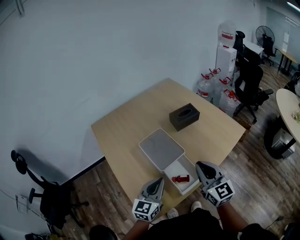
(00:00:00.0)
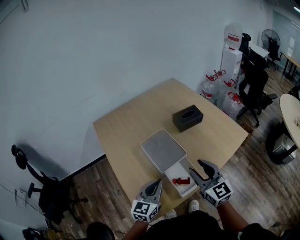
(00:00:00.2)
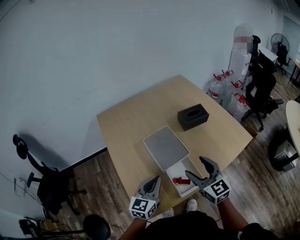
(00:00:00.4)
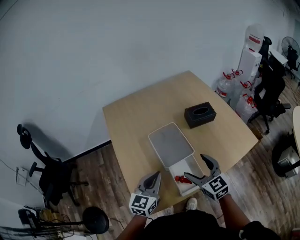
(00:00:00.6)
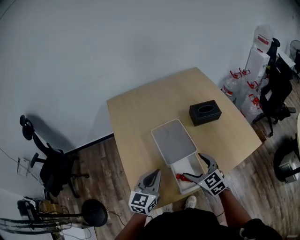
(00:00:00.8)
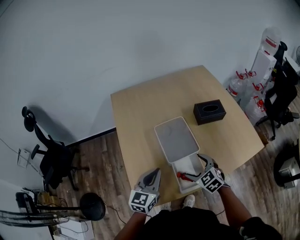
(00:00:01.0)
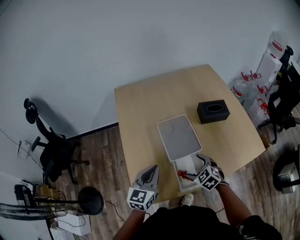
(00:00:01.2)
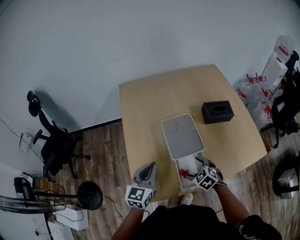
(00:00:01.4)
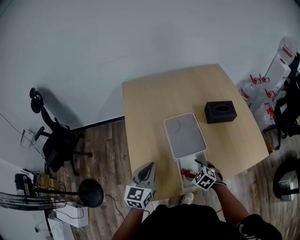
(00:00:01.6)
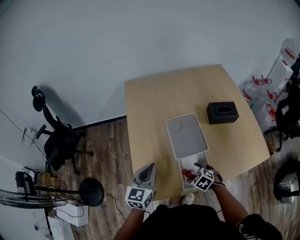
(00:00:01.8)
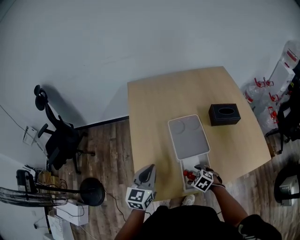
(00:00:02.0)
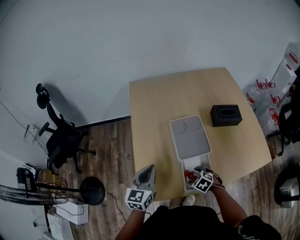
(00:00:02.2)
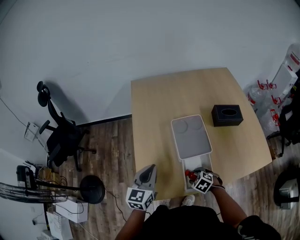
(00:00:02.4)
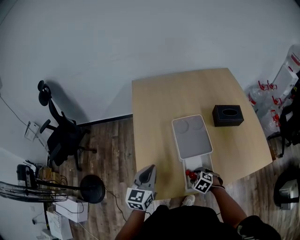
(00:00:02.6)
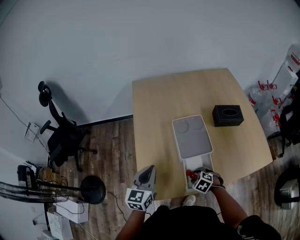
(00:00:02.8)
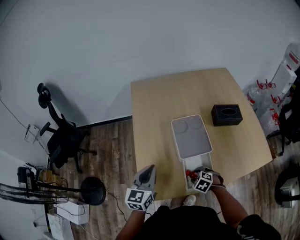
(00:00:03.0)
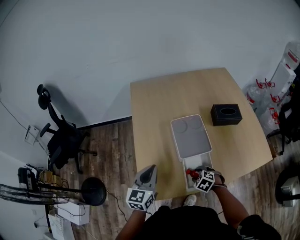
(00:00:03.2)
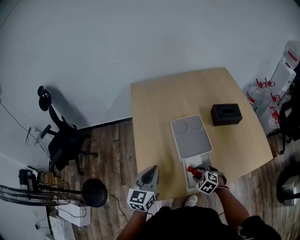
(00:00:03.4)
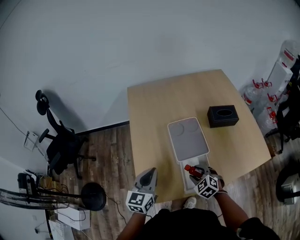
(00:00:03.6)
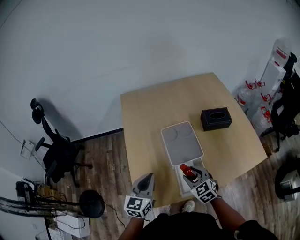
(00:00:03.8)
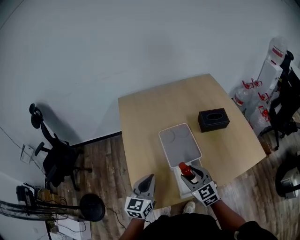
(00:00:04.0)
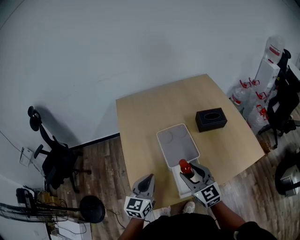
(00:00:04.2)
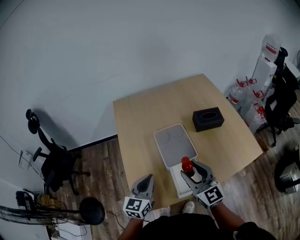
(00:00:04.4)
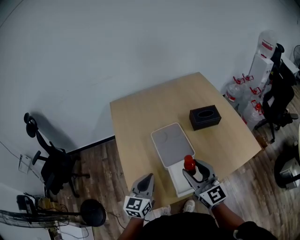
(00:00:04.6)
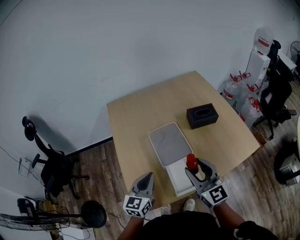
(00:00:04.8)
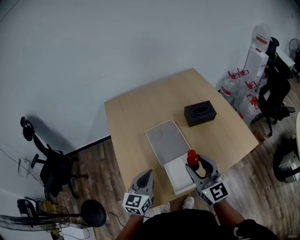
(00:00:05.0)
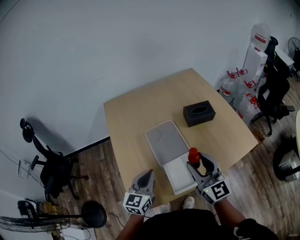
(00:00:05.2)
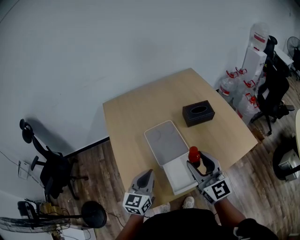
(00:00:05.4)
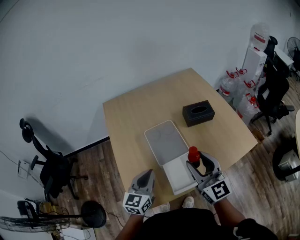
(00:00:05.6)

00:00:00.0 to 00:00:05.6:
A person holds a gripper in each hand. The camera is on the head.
00:00:00.0 to 00:00:01.4: The left gripper moves some 10 cm, and rotates some 30 degrees, while the right gripper heads downward, covering some 25 cm, tips its fingers downward by about 50 degrees, and opens its fingers.
00:00:01.4 to 00:00:02.8: The left gripper moves about 5 cm. The right gripper goes approximately 10 cm downward, rotates some 20 degrees, and closes up.
00:00:02.8 to 00:00:04.2: The left gripper moves about 5 cm; the right gripper moves upward, roughly 25 cm, and angles its fingers upward, by roughly 60 degrees.
00:00:04.2 to 00:00:05.6: The right gripper goes about 10 cm upward and to the right, and rotates about 20 degrees.

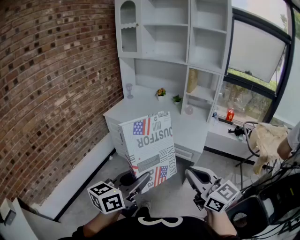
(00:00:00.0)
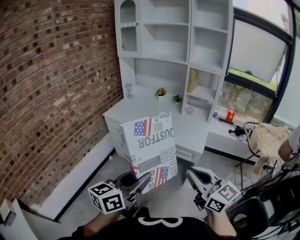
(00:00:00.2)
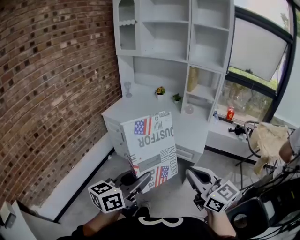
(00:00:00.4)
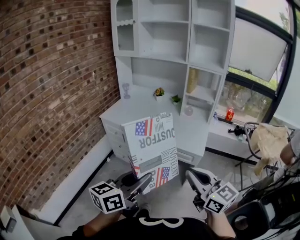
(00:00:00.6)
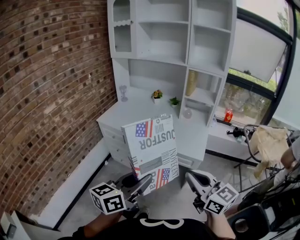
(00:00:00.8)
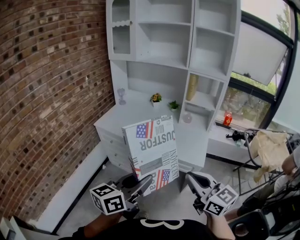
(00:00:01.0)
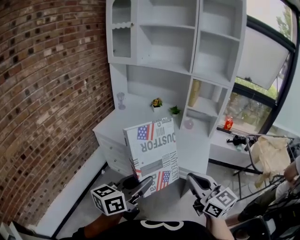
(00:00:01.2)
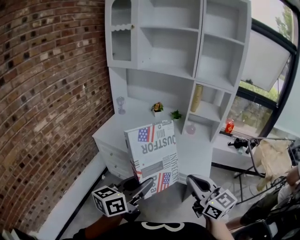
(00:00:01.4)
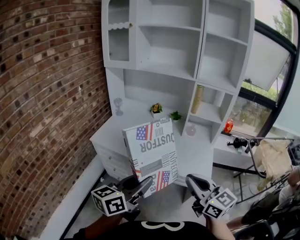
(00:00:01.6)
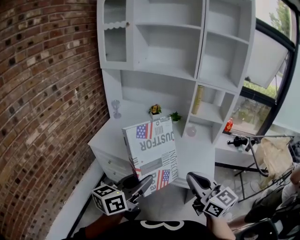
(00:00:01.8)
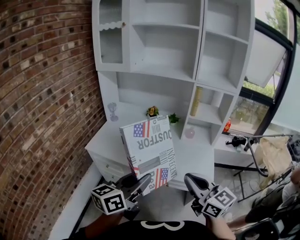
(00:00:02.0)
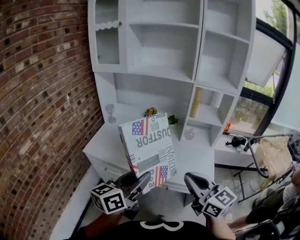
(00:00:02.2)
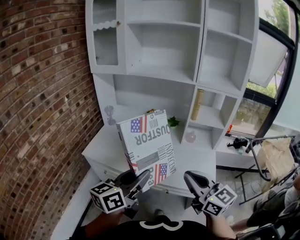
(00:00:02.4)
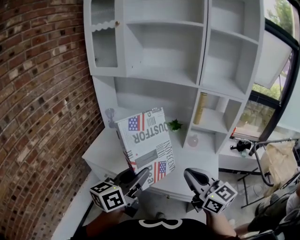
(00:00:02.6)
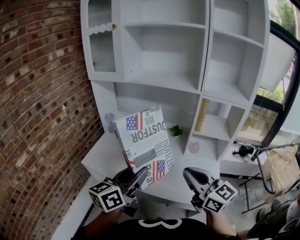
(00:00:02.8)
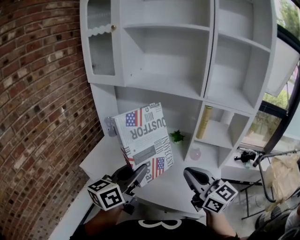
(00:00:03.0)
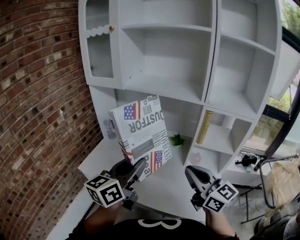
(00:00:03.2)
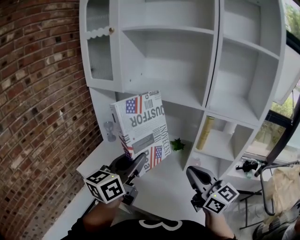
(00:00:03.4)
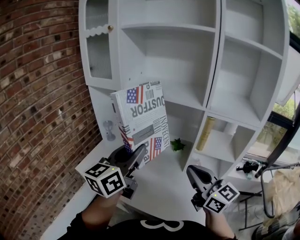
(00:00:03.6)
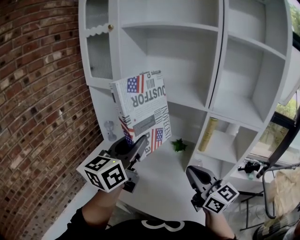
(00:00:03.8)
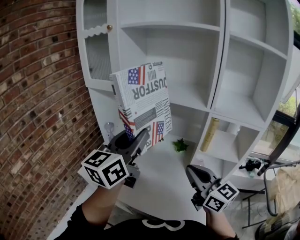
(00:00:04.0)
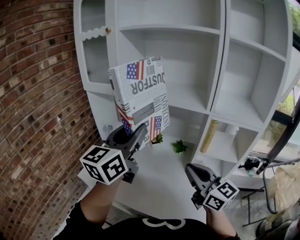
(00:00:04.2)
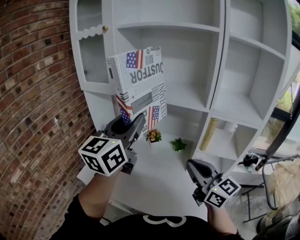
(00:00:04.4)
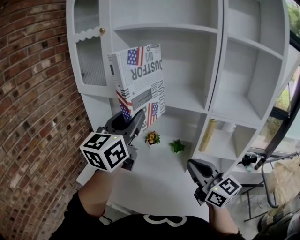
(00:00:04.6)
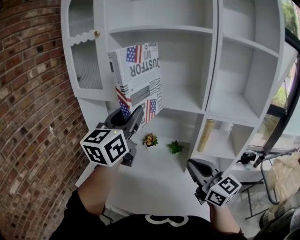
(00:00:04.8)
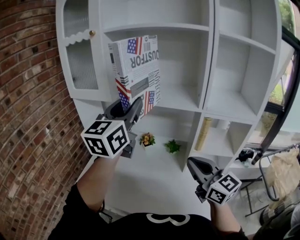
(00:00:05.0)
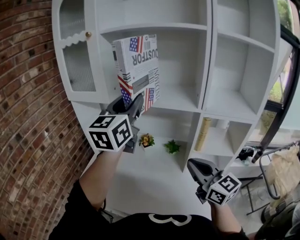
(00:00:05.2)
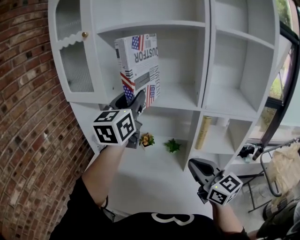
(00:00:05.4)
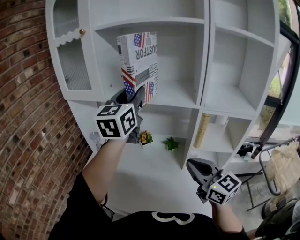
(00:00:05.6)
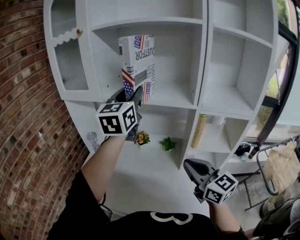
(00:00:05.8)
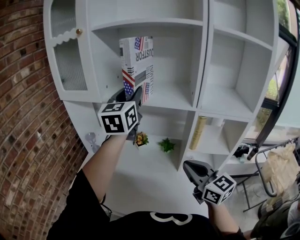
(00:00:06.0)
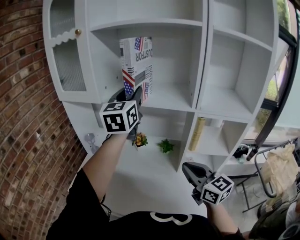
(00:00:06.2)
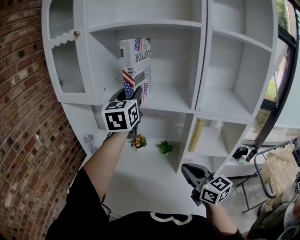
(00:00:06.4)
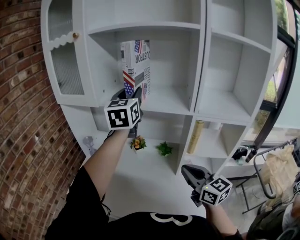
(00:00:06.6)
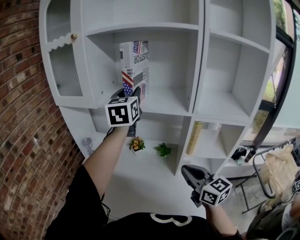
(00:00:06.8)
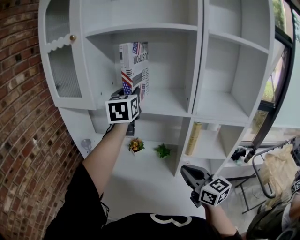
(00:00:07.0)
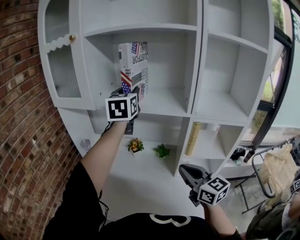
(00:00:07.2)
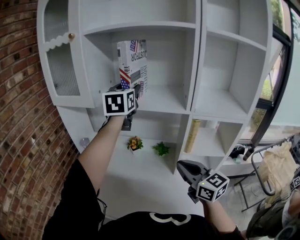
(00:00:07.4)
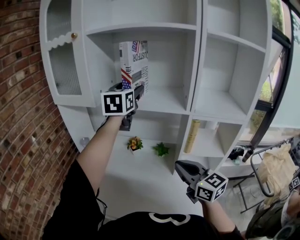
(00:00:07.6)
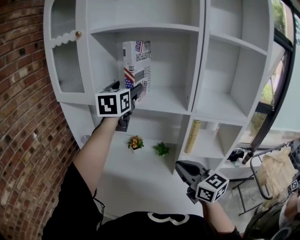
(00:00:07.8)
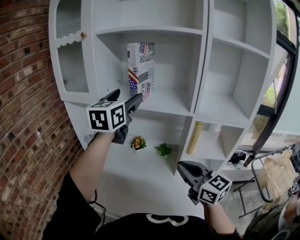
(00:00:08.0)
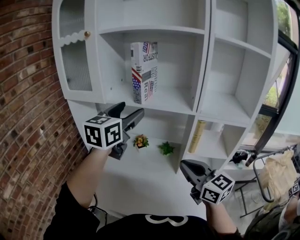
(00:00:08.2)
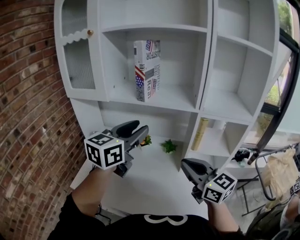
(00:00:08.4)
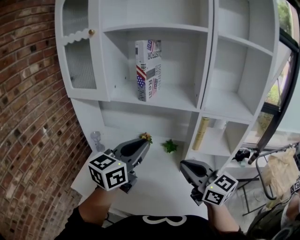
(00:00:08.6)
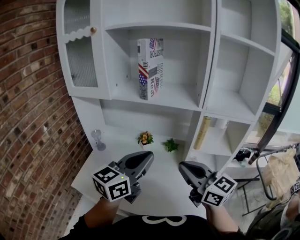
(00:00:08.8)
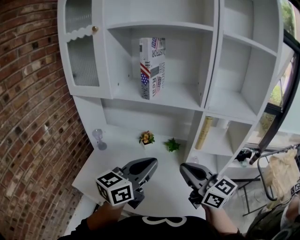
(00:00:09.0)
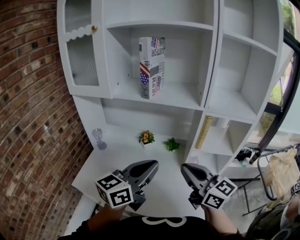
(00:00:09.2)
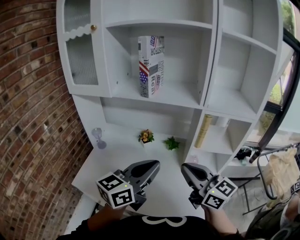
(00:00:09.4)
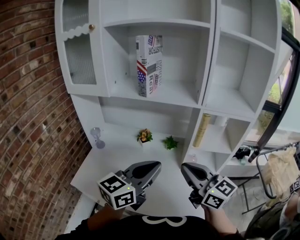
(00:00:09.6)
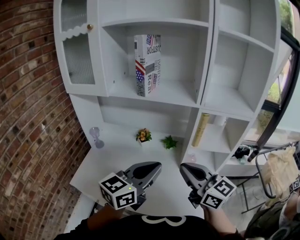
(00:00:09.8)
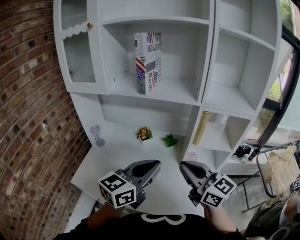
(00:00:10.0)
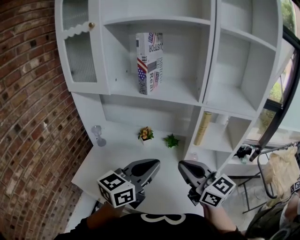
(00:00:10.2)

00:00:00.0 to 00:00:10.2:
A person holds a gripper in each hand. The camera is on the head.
00:00:00.0 to 00:00:01.4: Both grippers move forward, approximately 20 cm.
00:00:01.4 to 00:00:03.0: Both grippers travel together forward, approximately 30 cm.
00:00:03.0 to 00:00:04.4: The left gripper travels forward and upward by about 25 cm, and swivels approximately 20 degrees; the right gripper travels forward by some 10 cm.
00:00:04.4 to 00:00:05.8: The left gripper travels forward and to the right by about 15 cm.
00:00:05.8 to 00:00:07.2: The left gripper travels forward by some 10 cm.
00:00:07.2 to 00:00:08.8: The right gripper is displaced to the left, backward and upward by approximately 10 cm; the left gripper moves backward and downward, some 30 cm, swivels about 40 degrees, and closes up.
00:00:08.8 to 00:00:10.2: The left gripper changes place by roughly 5 cm.

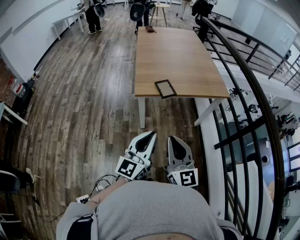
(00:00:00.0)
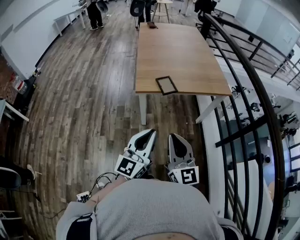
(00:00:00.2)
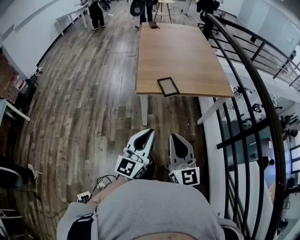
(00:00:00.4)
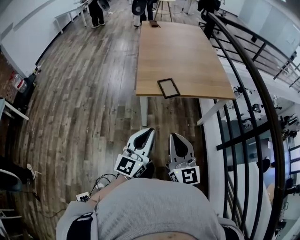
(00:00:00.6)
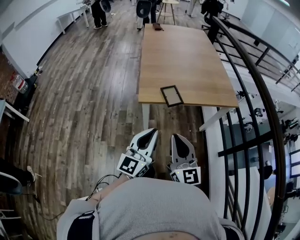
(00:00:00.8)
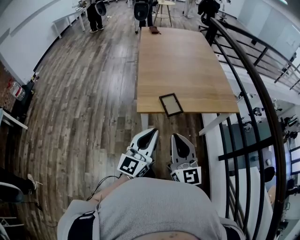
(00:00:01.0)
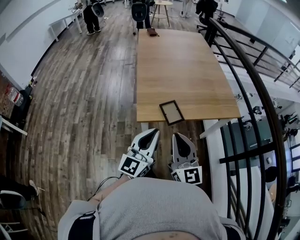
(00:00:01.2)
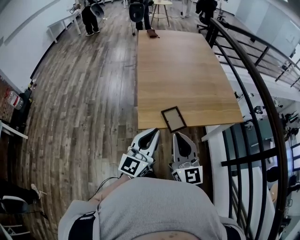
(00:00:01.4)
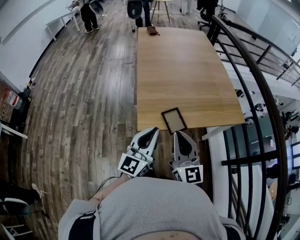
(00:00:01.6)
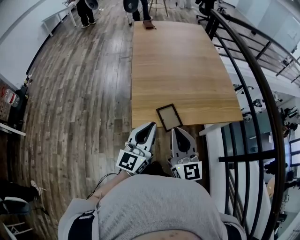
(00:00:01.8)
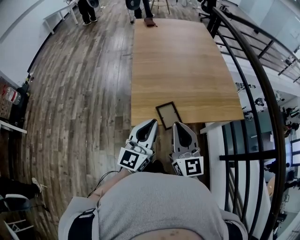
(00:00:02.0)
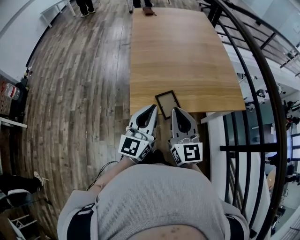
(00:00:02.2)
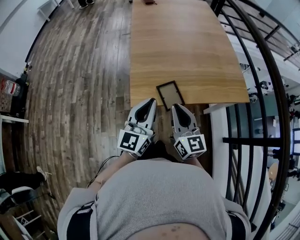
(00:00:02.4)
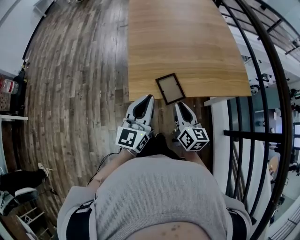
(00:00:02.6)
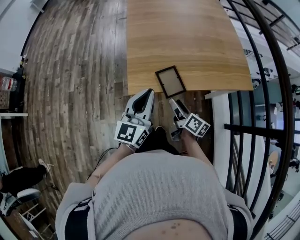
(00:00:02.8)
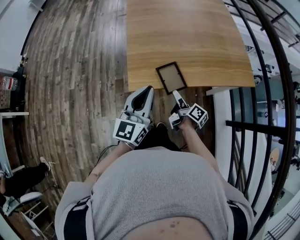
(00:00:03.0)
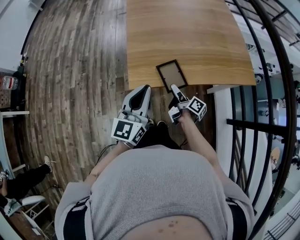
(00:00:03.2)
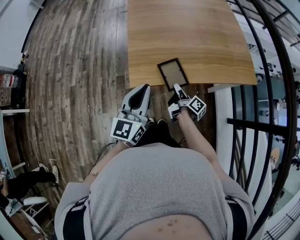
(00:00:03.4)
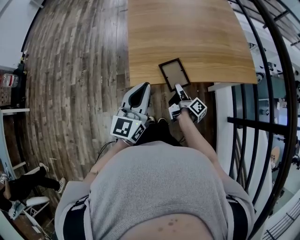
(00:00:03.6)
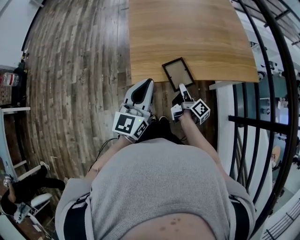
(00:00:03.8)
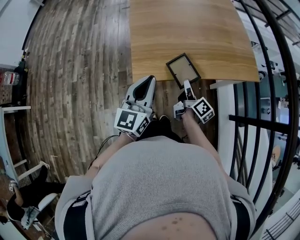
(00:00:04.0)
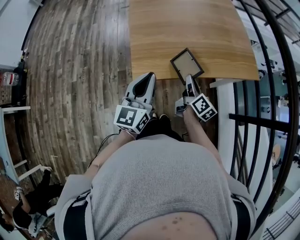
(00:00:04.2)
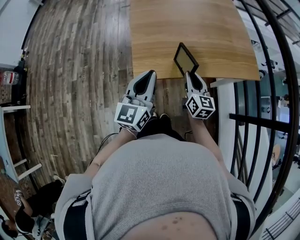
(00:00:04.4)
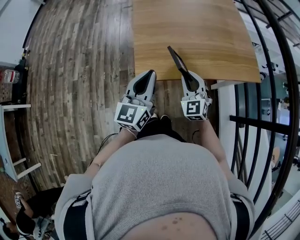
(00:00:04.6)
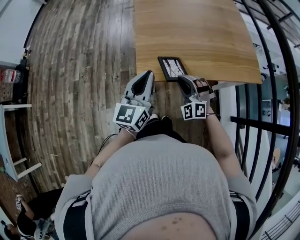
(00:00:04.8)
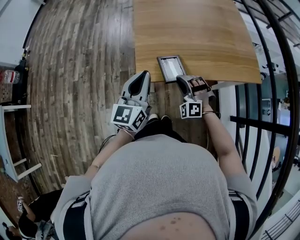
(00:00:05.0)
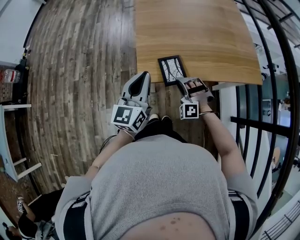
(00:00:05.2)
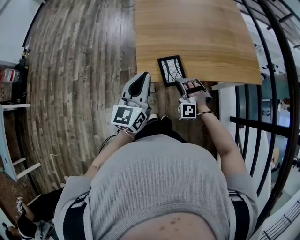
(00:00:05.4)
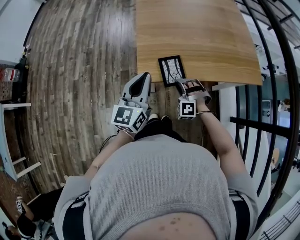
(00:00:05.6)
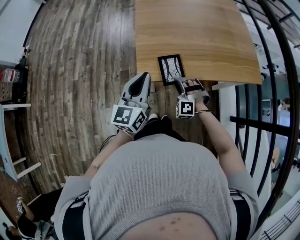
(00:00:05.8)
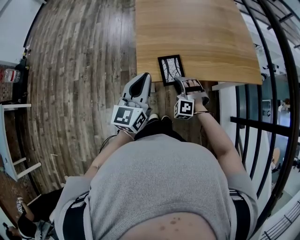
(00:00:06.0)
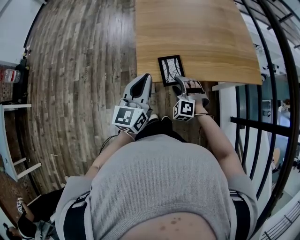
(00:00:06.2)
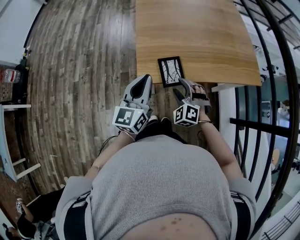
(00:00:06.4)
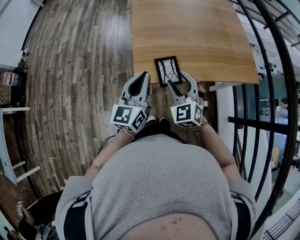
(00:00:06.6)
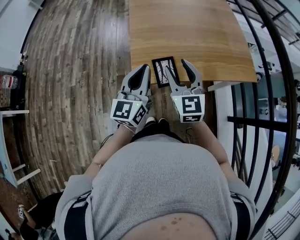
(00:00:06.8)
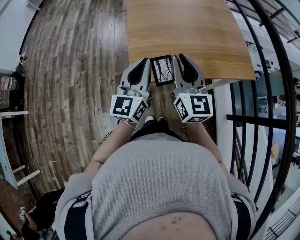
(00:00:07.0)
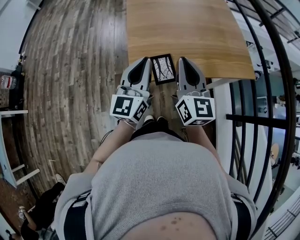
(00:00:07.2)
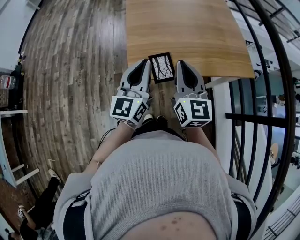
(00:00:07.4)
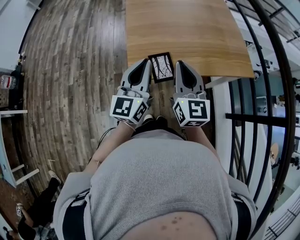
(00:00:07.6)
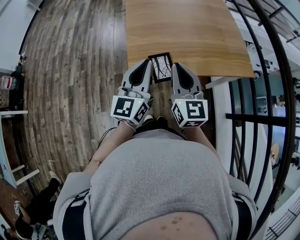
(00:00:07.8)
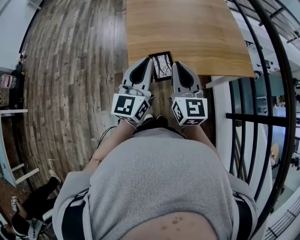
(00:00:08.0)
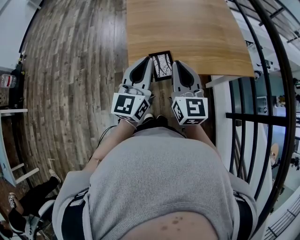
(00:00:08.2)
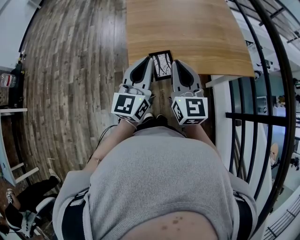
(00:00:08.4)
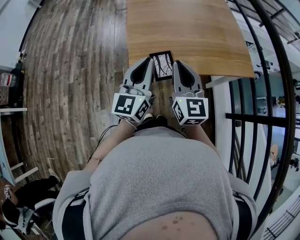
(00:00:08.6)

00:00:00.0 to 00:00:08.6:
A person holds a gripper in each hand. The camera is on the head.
00:00:00.0 to 00:00:01.4: The two grippers go approximately 30 cm forward.
00:00:01.4 to 00:00:02.8: The left gripper shifts roughly 10 cm forward and downward. The right gripper is displaced downward and forward by roughly 30 cm, twists about 110 degrees clockwise, seen from behind, and opens.
00:00:02.8 to 00:00:04.4: The right gripper moves forward, roughly 5 cm, rotates about 40 degrees, and closes up.
00:00:04.4 to 00:00:05.8: The right gripper moves downward and to the left, approximately 15 cm, and twists about 100 degrees counterclockwise, seen from behind.
00:00:05.8 to 00:00:07.2: The right gripper goes roughly 30 cm upward, twists some 90 degrees clockwise, seen from behind, and opens and closes again. The left gripper is displaced upward by some 5 cm.
00:00:07.2 to 00:00:08.6: The grippers stay close to where they were, moving slightly.
